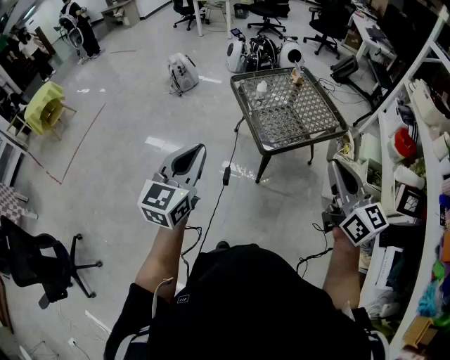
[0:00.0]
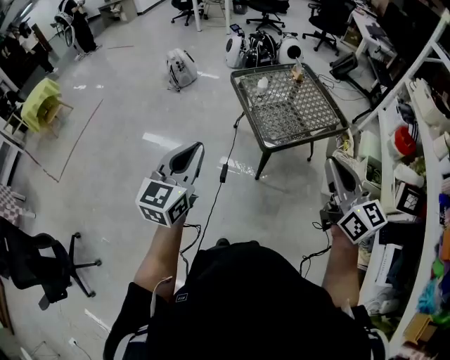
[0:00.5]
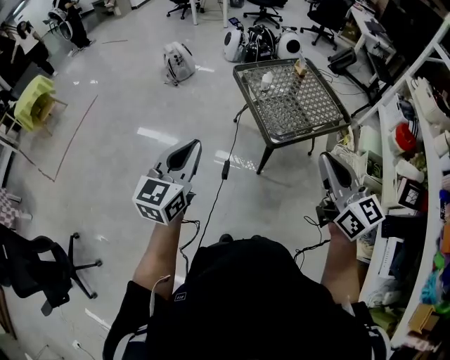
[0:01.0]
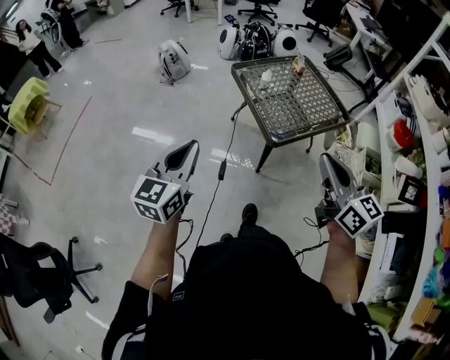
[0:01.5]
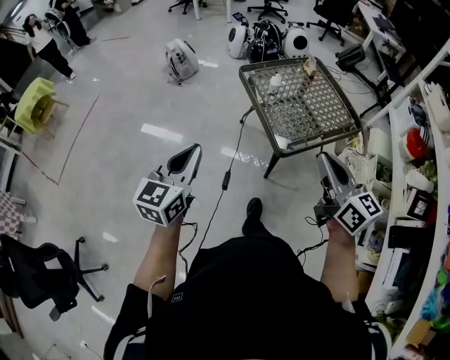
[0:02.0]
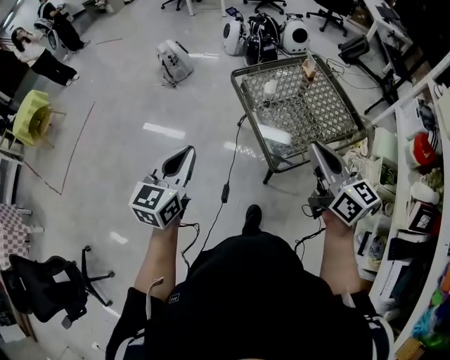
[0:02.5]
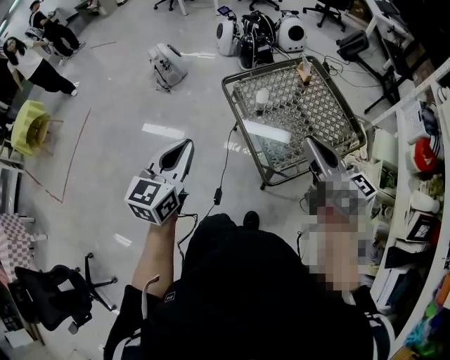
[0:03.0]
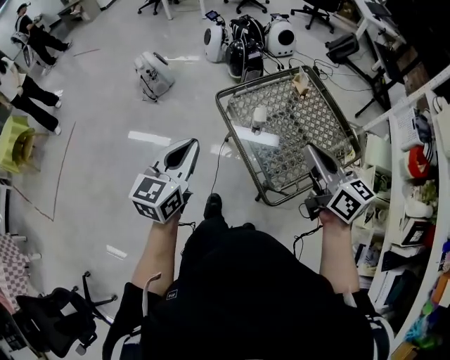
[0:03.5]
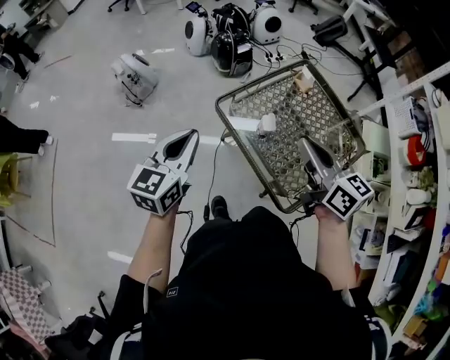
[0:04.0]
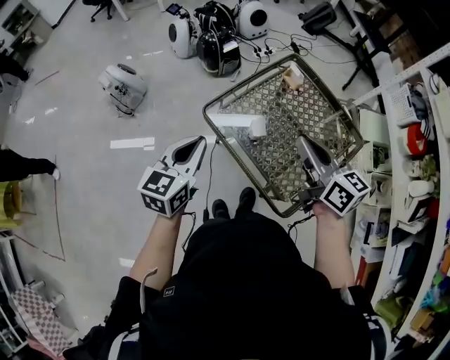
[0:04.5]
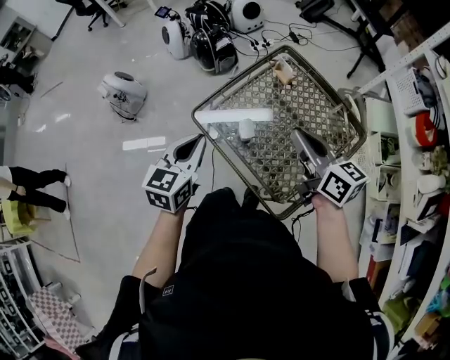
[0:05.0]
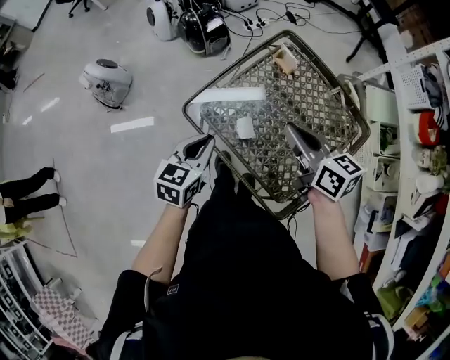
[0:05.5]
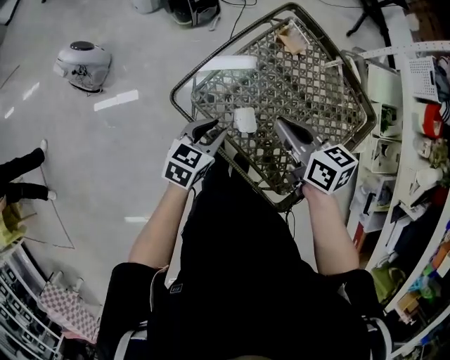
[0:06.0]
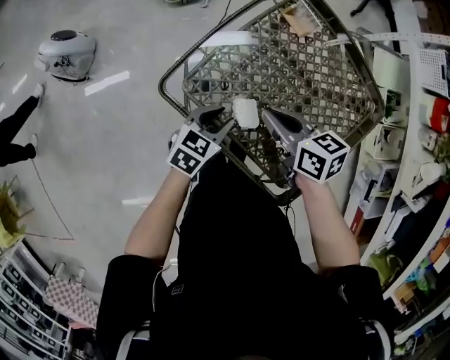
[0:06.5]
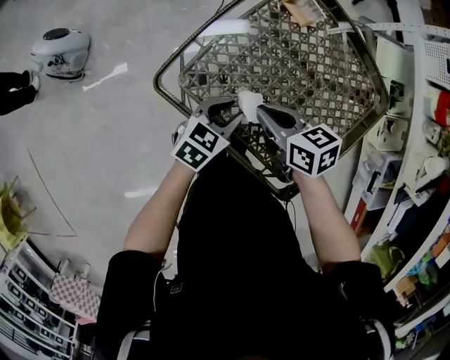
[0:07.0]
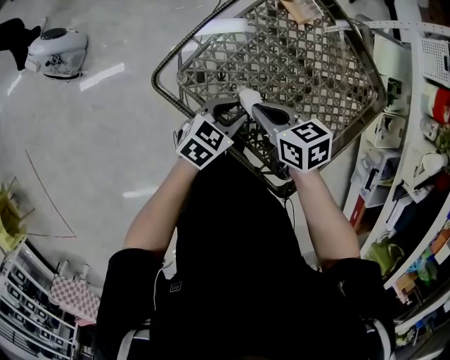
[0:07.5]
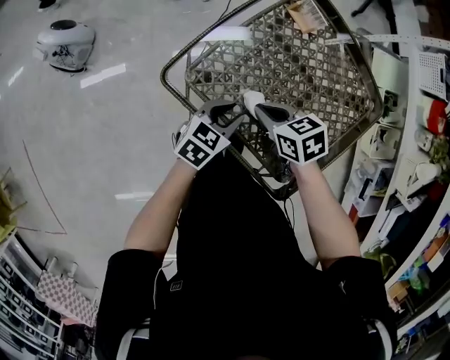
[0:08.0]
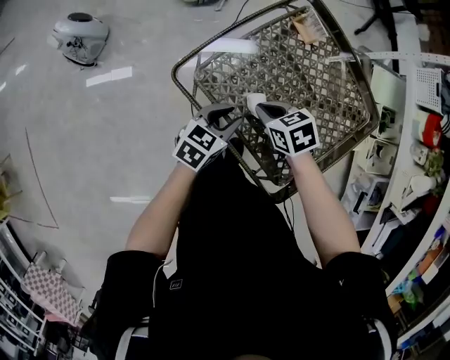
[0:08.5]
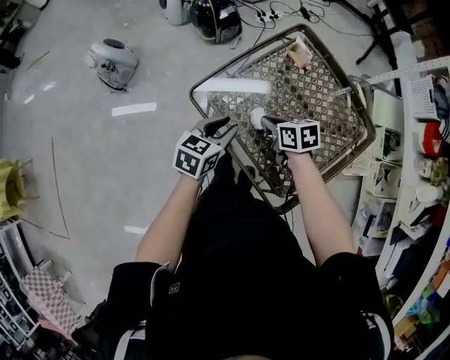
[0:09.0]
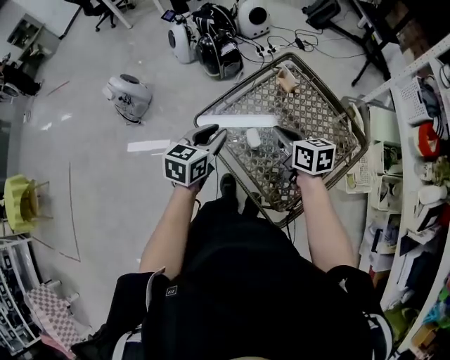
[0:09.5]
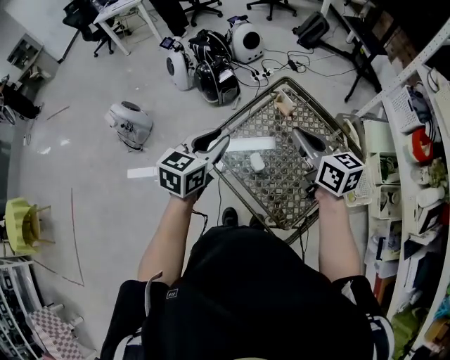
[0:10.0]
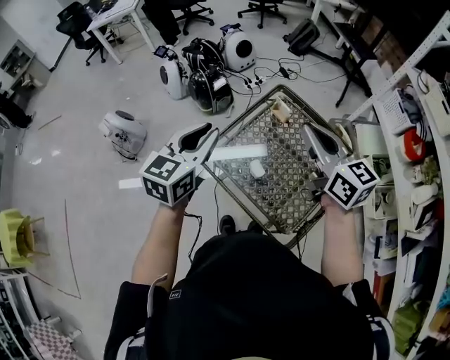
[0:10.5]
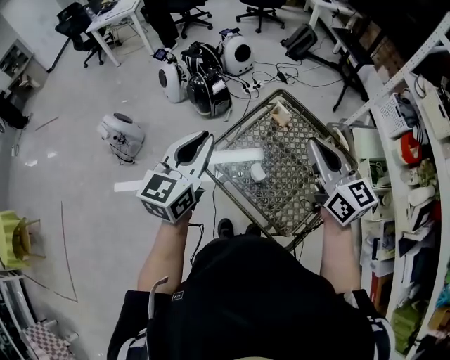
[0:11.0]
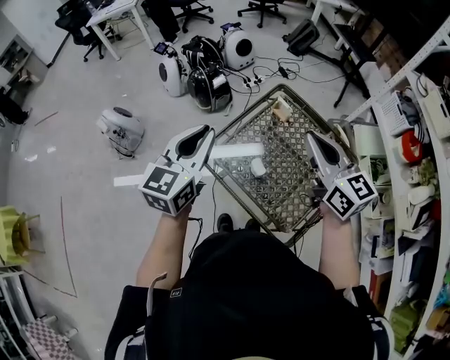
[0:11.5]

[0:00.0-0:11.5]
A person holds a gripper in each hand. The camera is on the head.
0.0 to 2.0 s: Both grippers move forward, to the left and downward, about 15 cm.
2.0 to 4.0 s: Both grippers are carried forward, roughly 40 cm.
4.0 to 6.0 s: The right gripper heads downward and forward, covering about 25 cm, and turns by roughly 20 degrees, while the left gripper is displaced downward, to the right and forward by roughly 35 cm, rotates approximately 40 degrees, and opens up.
6.0 to 7.5 s: The left gripper goes approximately 10 cm downward and to the right. Meanwhile the right gripper moves downward, approximately 10 cm.
7.5 to 9.5 s: The two grippers go approximately 20 cm upward. The left gripper swivels approximately 30 degrees.
9.5 to 11.5 s: The two grippers go approximately 20 cm upward. The right gripper turns by approximately 40 degrees. The left gripper changes its angle by roughly 20 degrees.

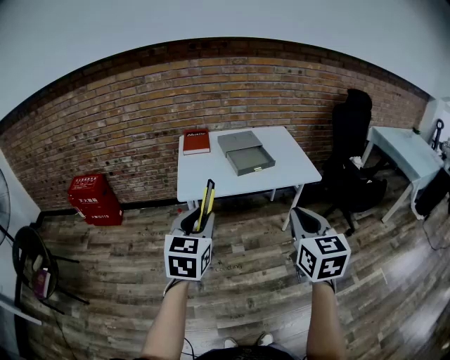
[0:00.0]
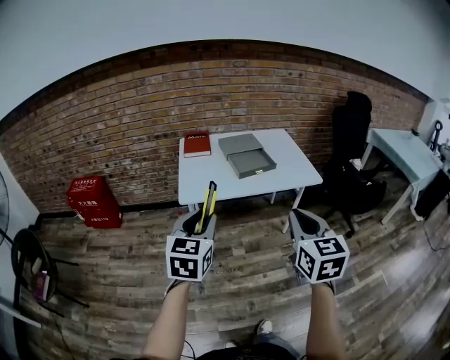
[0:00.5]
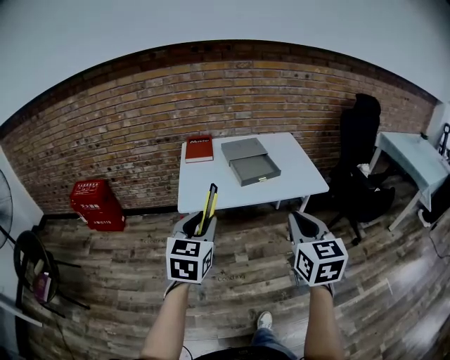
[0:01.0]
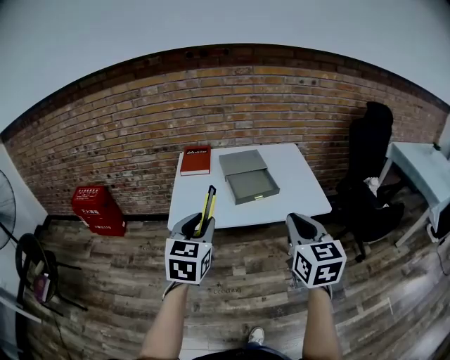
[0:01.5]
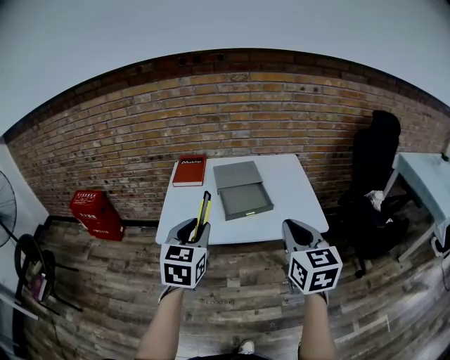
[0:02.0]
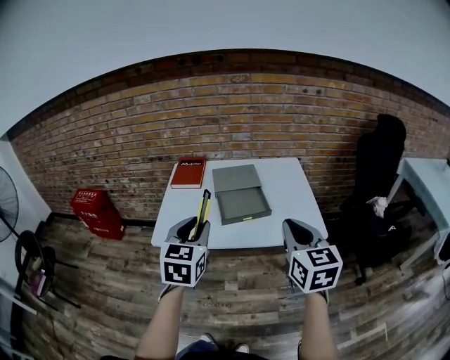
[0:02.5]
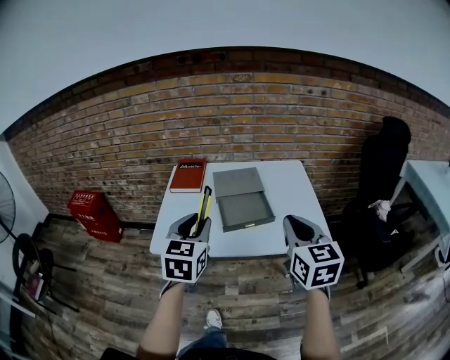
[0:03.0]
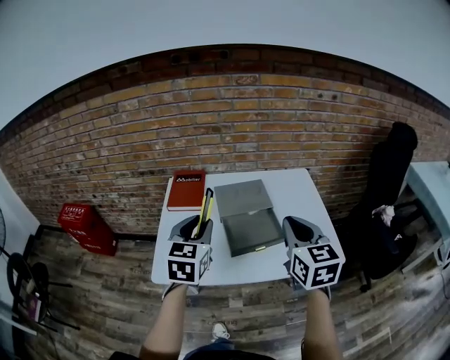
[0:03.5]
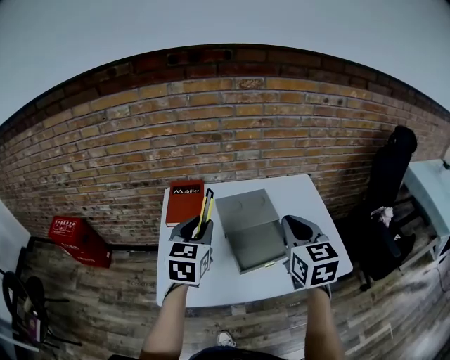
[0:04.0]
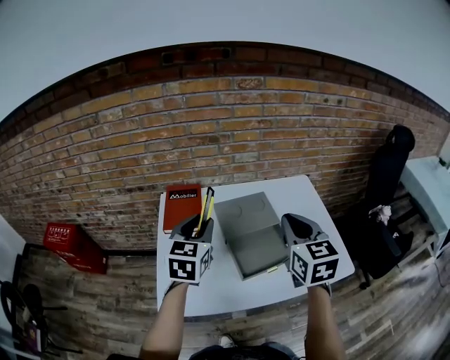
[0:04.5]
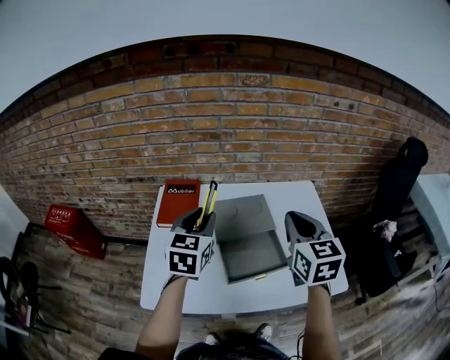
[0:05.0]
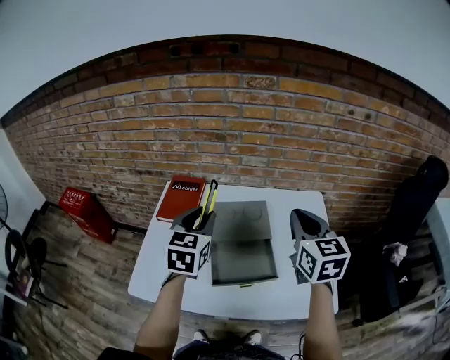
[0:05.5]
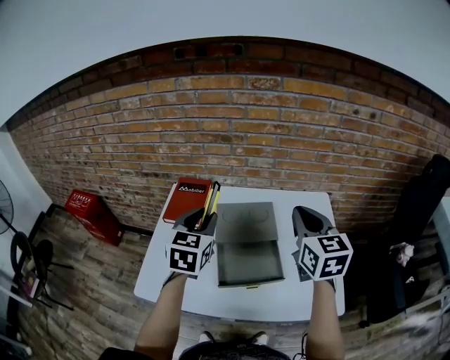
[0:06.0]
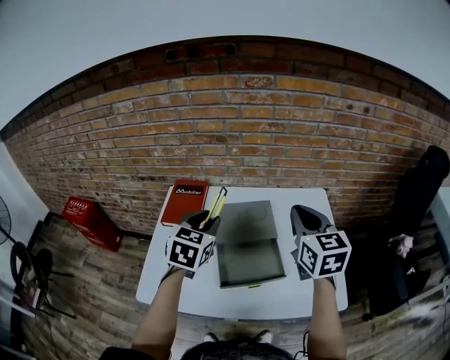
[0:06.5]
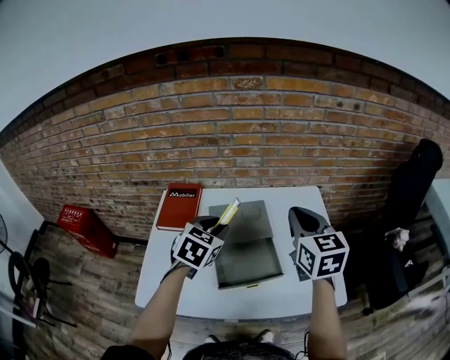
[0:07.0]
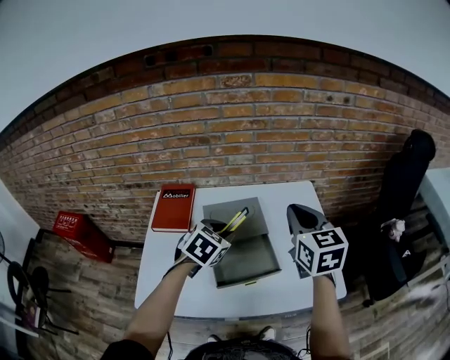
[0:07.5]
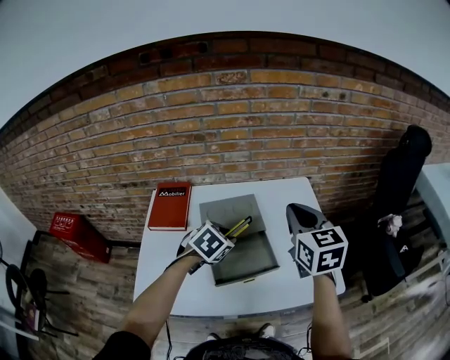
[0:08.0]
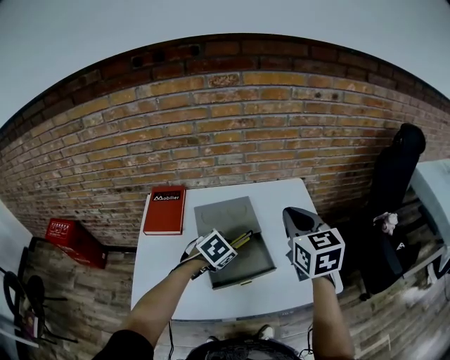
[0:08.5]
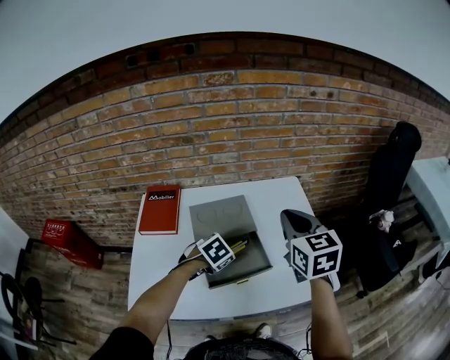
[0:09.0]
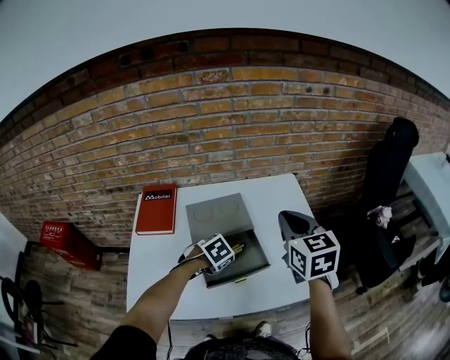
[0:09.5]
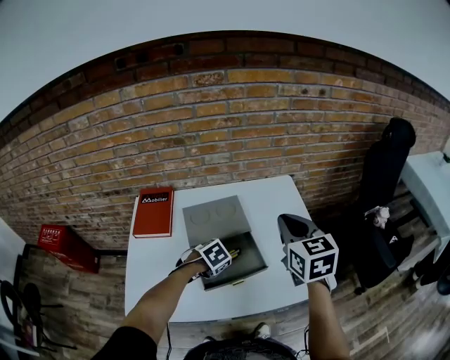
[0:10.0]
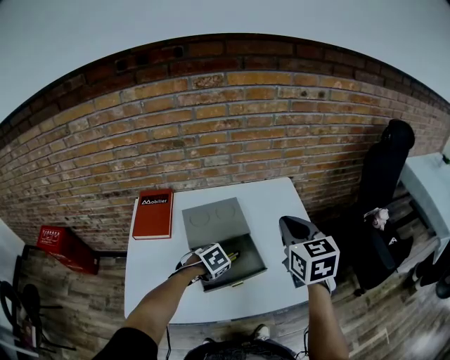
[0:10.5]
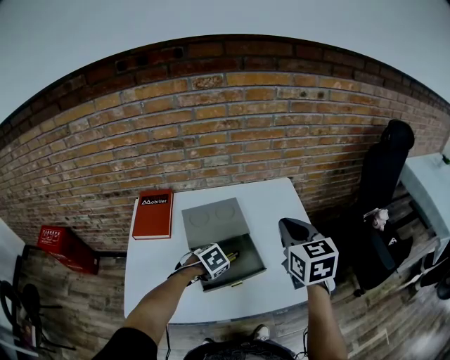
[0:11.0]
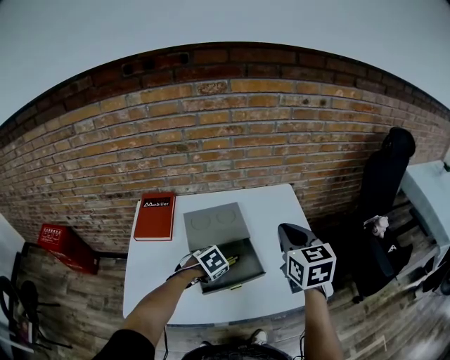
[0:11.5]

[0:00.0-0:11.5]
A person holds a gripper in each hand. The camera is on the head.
0.0 to 2.0 s: The right gripper is displaced forward by some 25 cm. The left gripper is displaced forward and to the right by approximately 25 cm.
2.0 to 4.0 s: The grippers both shift forward by approximately 30 cm.
4.0 to 6.0 s: The right gripper moves forward and to the right, roughly 15 cm. The left gripper travels forward and to the right by about 10 cm.
6.0 to 7.5 s: The left gripper heads downward and to the right, covering about 15 cm, and swivels some 40 degrees.
7.5 to 9.5 s: The left gripper is displaced downward by approximately 15 cm, and changes its angle by approximately 30 degrees.
9.5 to 11.5 s: The grippers stay close to where they were, moving slightly.

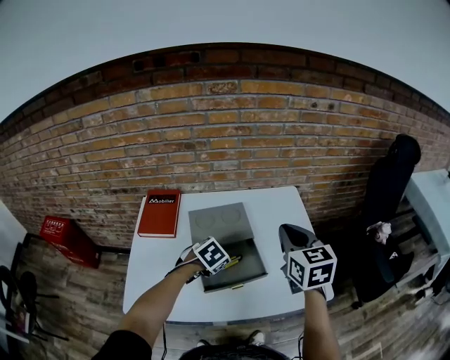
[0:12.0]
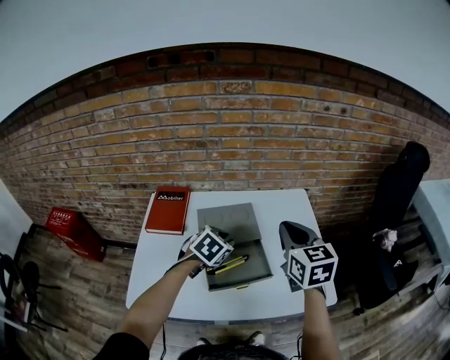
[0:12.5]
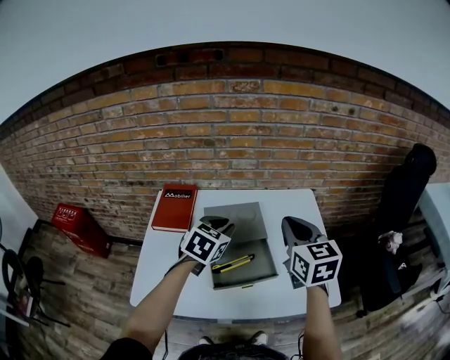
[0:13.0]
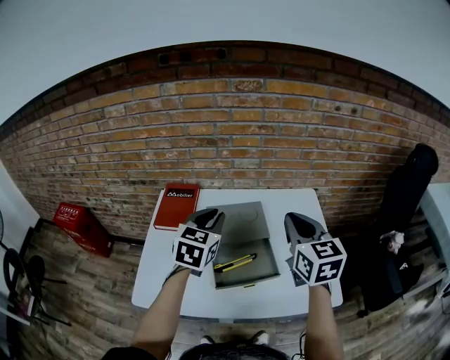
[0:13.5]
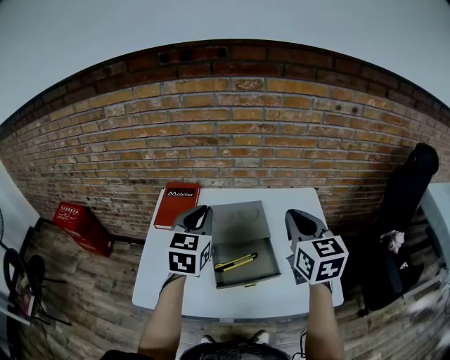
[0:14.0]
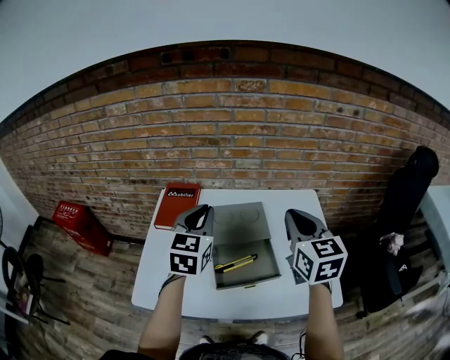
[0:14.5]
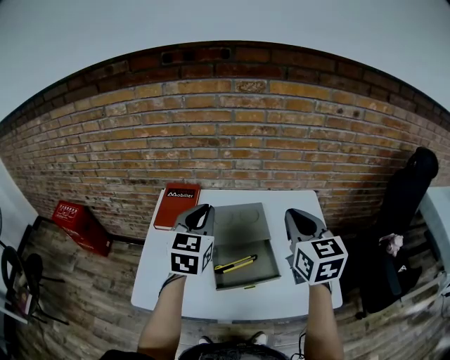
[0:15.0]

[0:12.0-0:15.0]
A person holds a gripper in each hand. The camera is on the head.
12.0 to 13.5 s: The left gripper moves upward, approximately 20 cm, and tilts its fingers some 40 degrees upward, while the right gripper shifts by some 5 cm.
13.5 to 15.0 s: The grippers stay close to where they were, moving slightly.

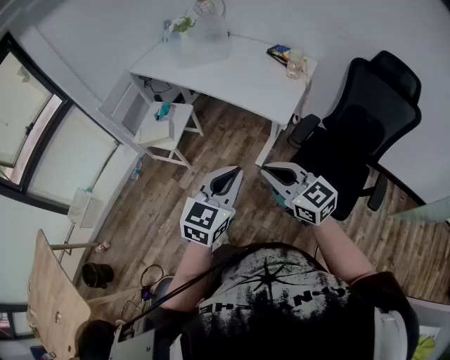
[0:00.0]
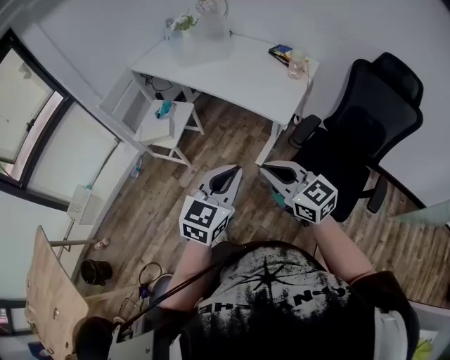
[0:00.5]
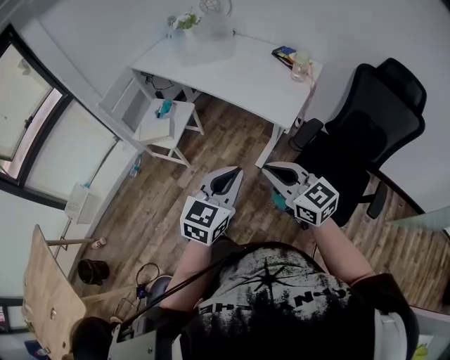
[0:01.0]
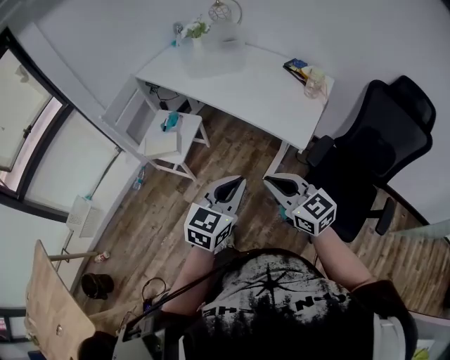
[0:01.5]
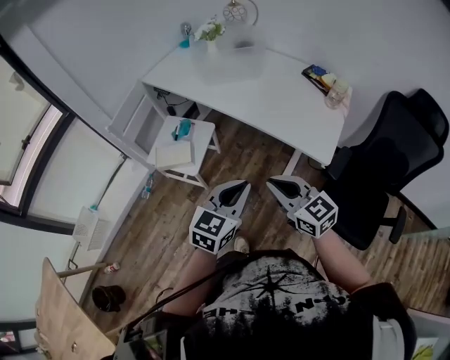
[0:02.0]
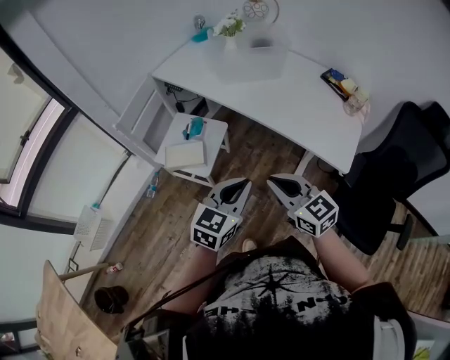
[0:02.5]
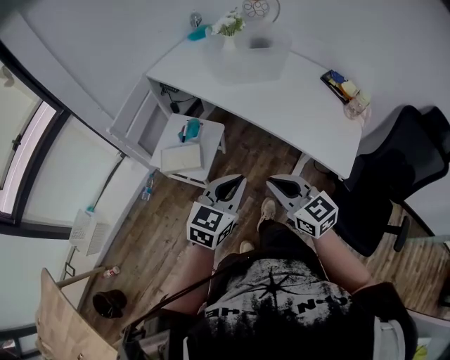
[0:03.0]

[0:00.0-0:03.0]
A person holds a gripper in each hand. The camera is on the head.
0.0 to 1.5 s: The right gripper moves forward, some 10 cm. Meanwhile the left gripper travels forward and to the left by roughly 10 cm.
1.5 to 3.0 s: Both grippers move forward and to the left, approximately 25 cm.
